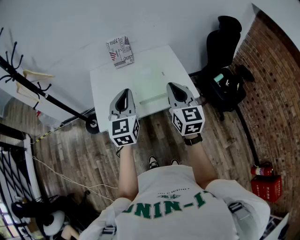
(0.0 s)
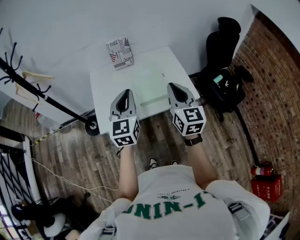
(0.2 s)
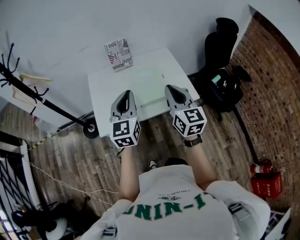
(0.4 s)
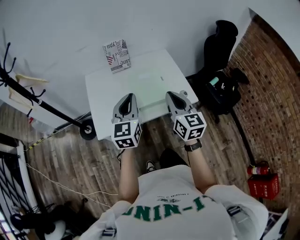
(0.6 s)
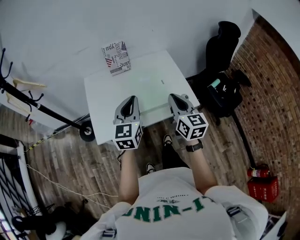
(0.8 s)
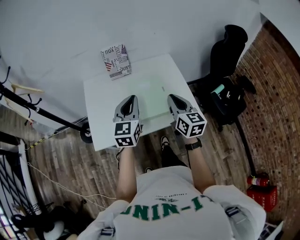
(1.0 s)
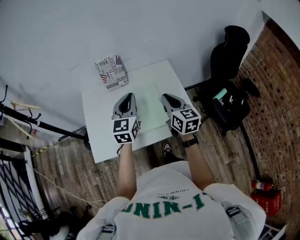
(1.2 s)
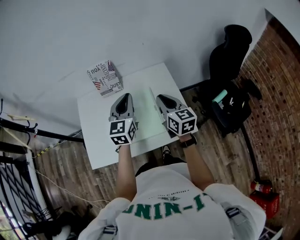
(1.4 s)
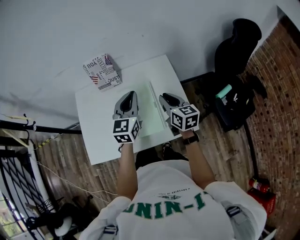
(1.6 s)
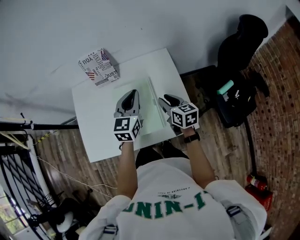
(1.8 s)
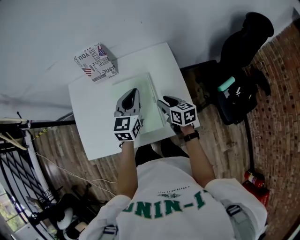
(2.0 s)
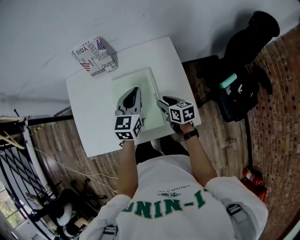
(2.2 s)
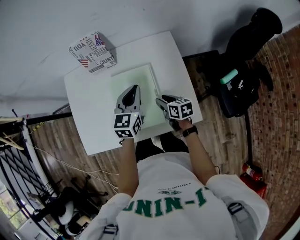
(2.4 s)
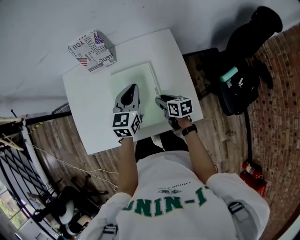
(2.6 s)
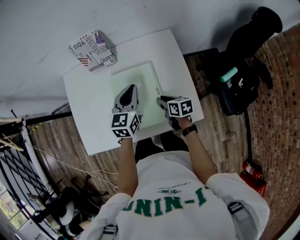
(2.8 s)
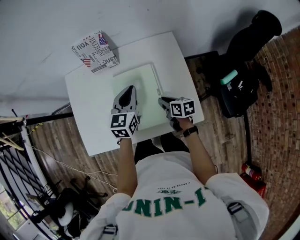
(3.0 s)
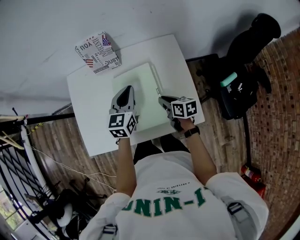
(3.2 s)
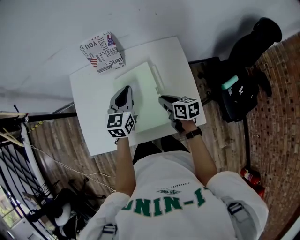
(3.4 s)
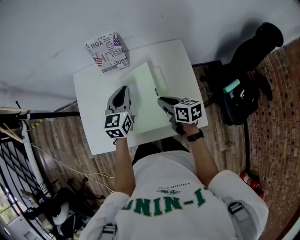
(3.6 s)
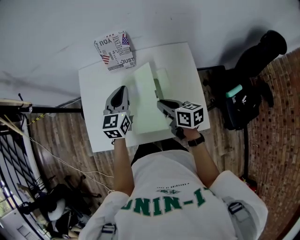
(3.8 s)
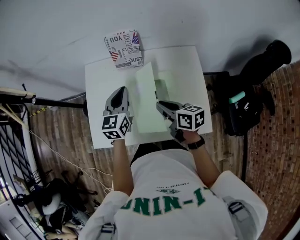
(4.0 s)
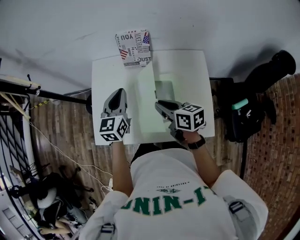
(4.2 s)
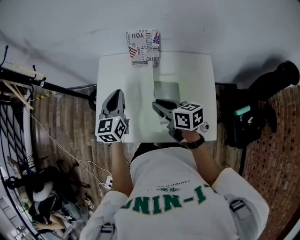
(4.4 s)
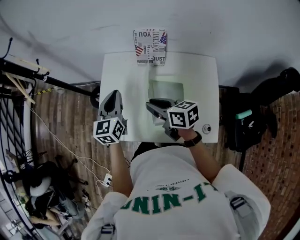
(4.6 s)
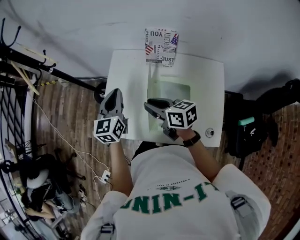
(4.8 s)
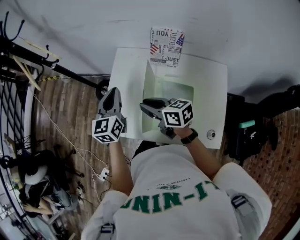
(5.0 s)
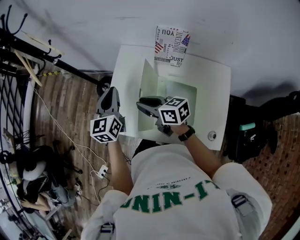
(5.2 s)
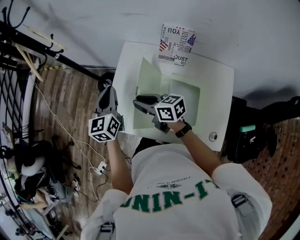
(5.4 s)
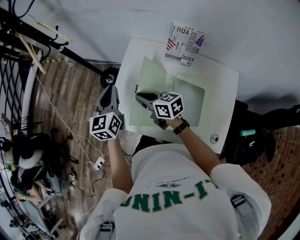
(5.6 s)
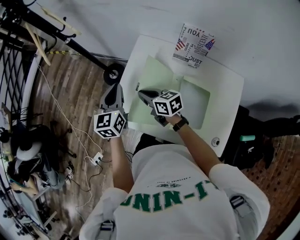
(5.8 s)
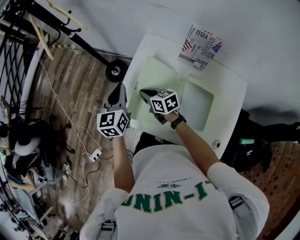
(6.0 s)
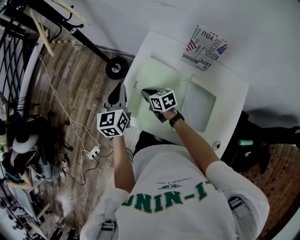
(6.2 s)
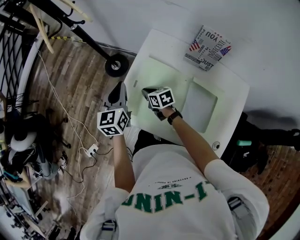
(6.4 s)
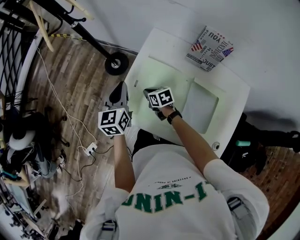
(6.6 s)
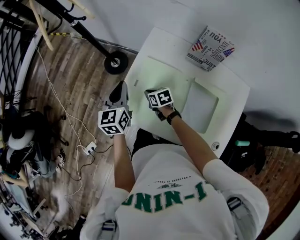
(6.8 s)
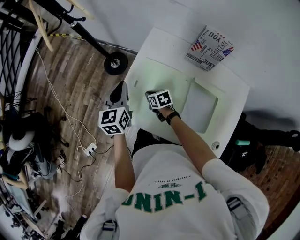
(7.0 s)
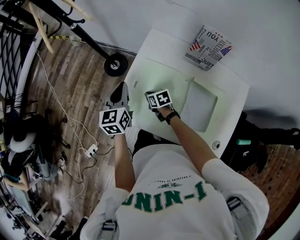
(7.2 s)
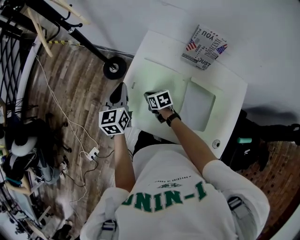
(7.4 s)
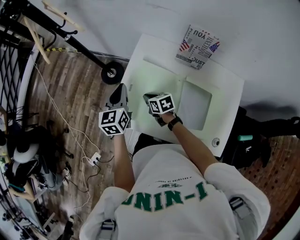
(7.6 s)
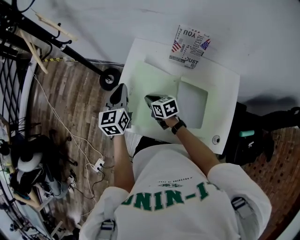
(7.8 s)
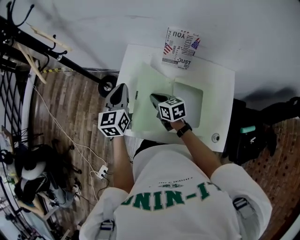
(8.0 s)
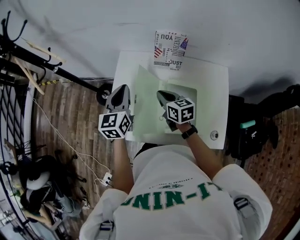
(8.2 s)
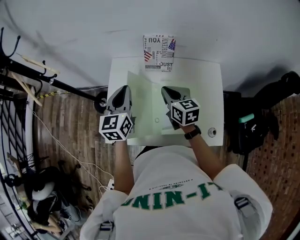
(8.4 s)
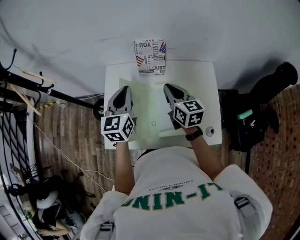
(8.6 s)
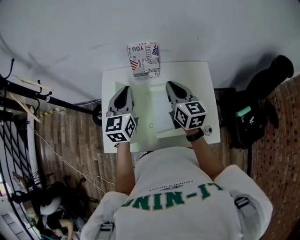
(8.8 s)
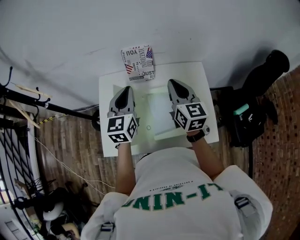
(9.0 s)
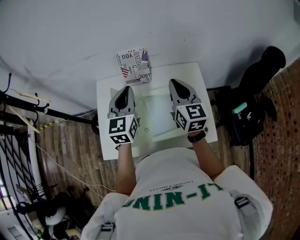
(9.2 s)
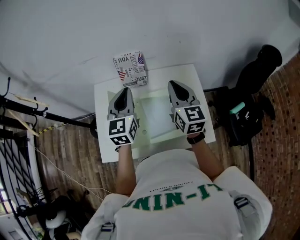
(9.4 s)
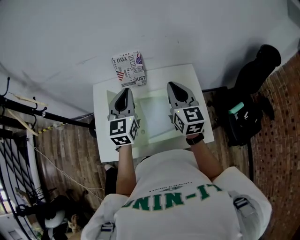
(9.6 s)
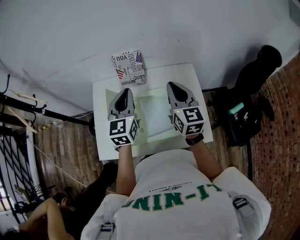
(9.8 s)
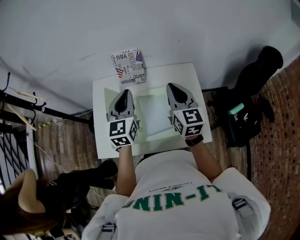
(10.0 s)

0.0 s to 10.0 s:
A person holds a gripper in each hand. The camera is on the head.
0.0 to 1.4 s: The left gripper heads forward and to the right, covering approximately 30 cm, while the right gripper shifts some 30 cm forward, and changes its angle by about 20 degrees.
1.4 to 2.8 s: The right gripper moves downward, some 30 cm, and turns by roughly 40 degrees, while the left gripper travels downward and forward by some 15 cm.
2.8 to 4.2 s: The left gripper goes approximately 20 cm to the left, while the right gripper moves upward and to the left, roughly 25 cm, and rotates approximately 20 degrees.
4.2 to 5.8 s: The right gripper changes place by roughly 30 cm, and swivels about 30 degrees. The left gripper shifts by some 25 cm, and changes its angle by some 30 degrees.
5.8 to 7.2 s: The right gripper shifts roughly 20 cm downward, and changes its angle by approximately 30 degrees, while the left gripper is displaced downward by about 5 cm.
7.2 to 8.6 s: The right gripper is displaced upward by roughly 30 cm, and points its fingers roughly 30 degrees further upward. Meanwhile the left gripper shifts by about 25 cm, and swivels approximately 30 degrees.
8.6 to 10.0 s: The right gripper moves to the right and upward, roughly 15 cm, and rotates about 20 degrees. The left gripper heads to the right, covering about 10 cm.

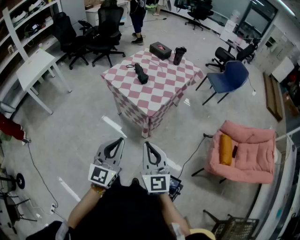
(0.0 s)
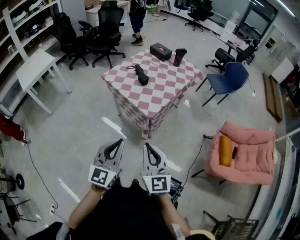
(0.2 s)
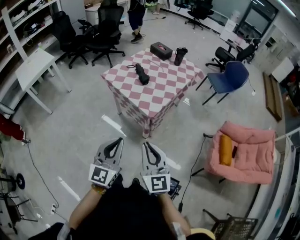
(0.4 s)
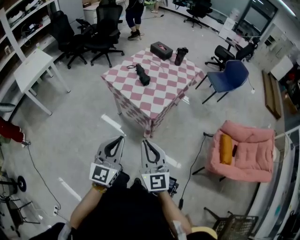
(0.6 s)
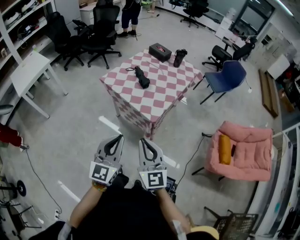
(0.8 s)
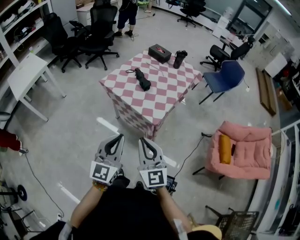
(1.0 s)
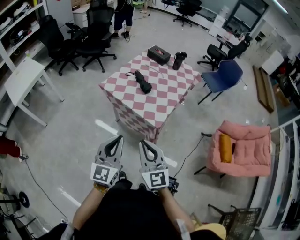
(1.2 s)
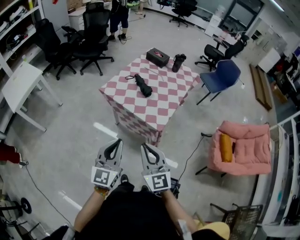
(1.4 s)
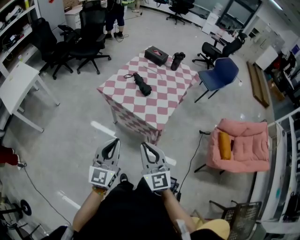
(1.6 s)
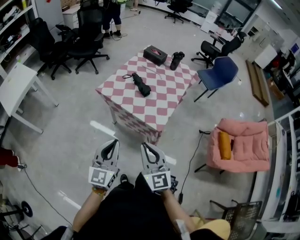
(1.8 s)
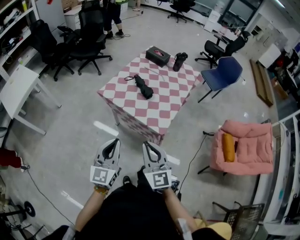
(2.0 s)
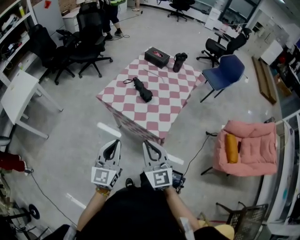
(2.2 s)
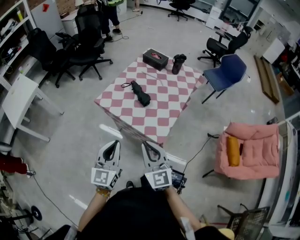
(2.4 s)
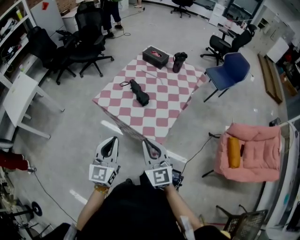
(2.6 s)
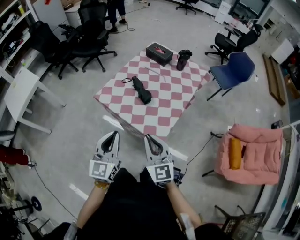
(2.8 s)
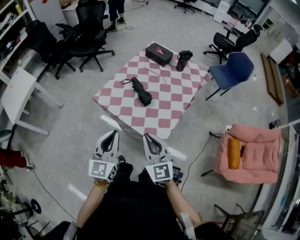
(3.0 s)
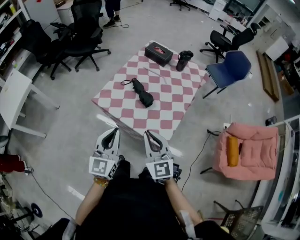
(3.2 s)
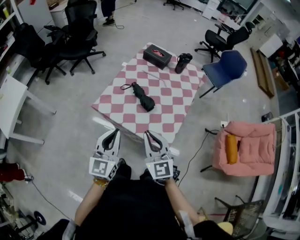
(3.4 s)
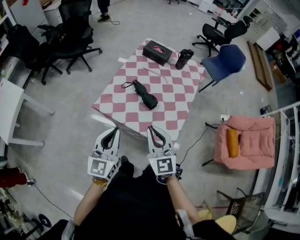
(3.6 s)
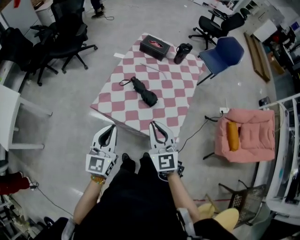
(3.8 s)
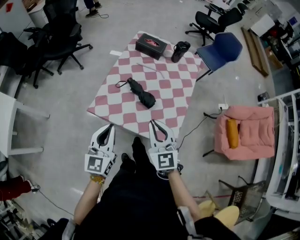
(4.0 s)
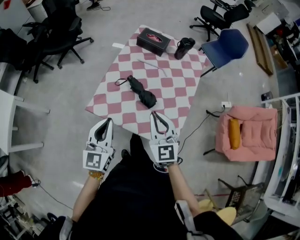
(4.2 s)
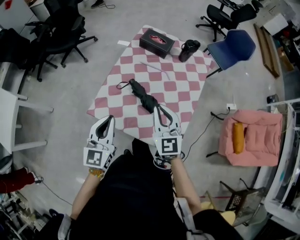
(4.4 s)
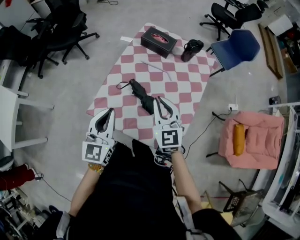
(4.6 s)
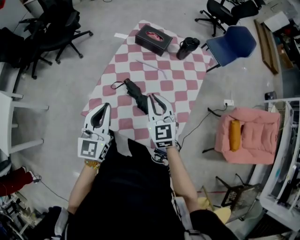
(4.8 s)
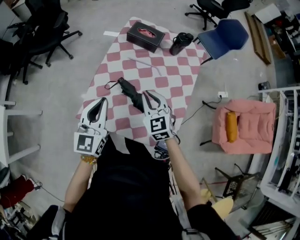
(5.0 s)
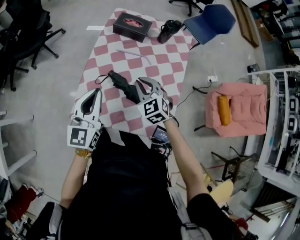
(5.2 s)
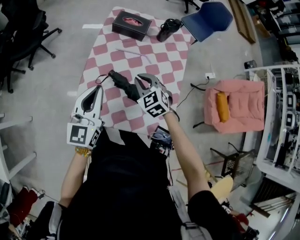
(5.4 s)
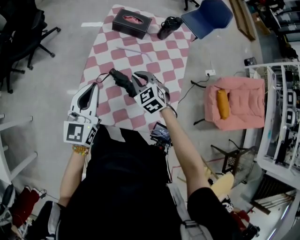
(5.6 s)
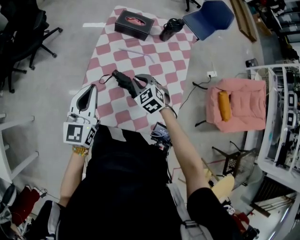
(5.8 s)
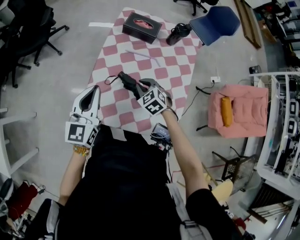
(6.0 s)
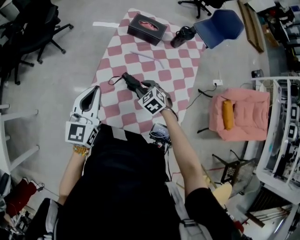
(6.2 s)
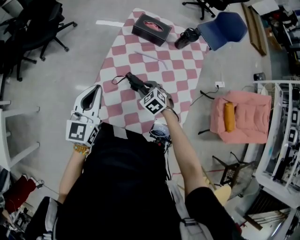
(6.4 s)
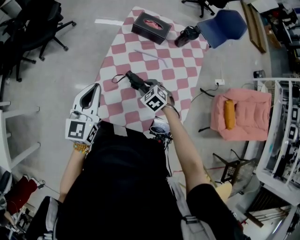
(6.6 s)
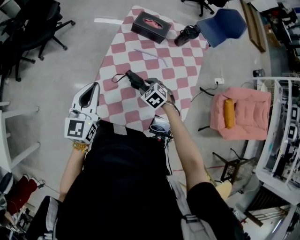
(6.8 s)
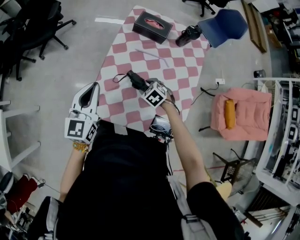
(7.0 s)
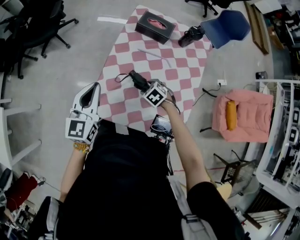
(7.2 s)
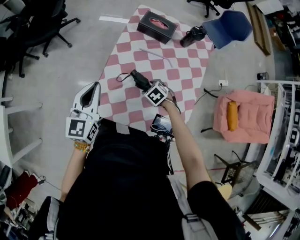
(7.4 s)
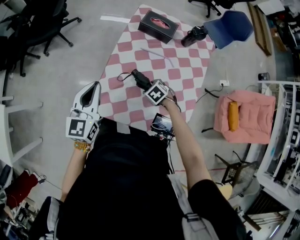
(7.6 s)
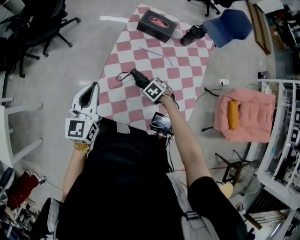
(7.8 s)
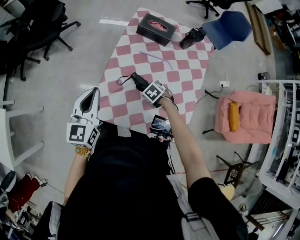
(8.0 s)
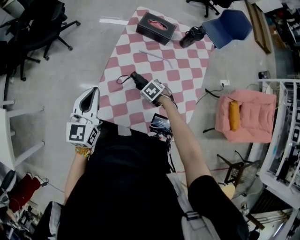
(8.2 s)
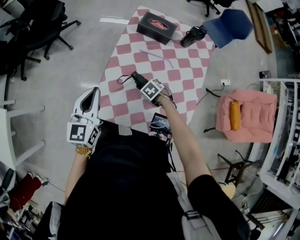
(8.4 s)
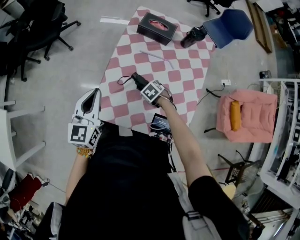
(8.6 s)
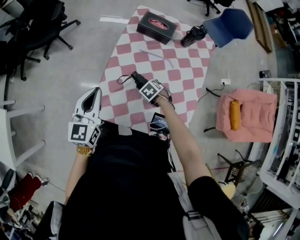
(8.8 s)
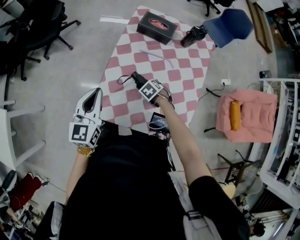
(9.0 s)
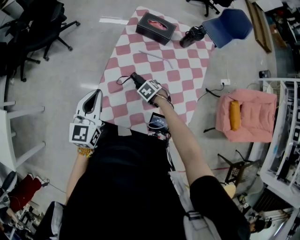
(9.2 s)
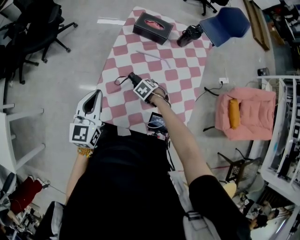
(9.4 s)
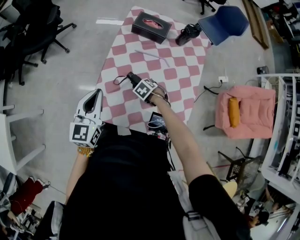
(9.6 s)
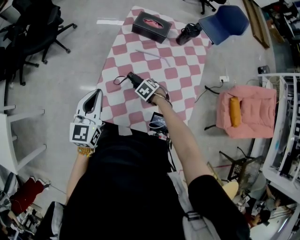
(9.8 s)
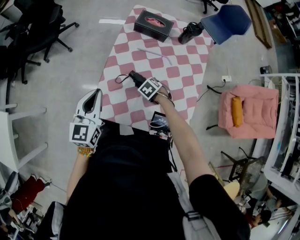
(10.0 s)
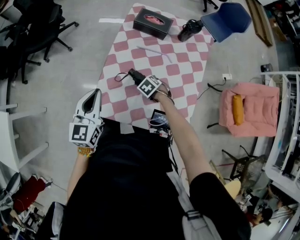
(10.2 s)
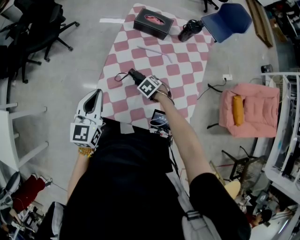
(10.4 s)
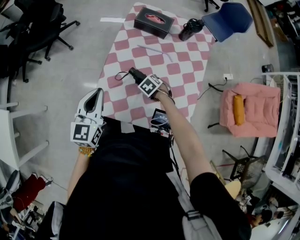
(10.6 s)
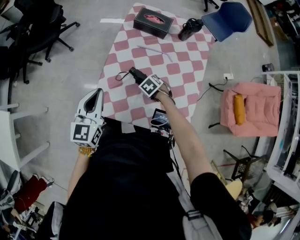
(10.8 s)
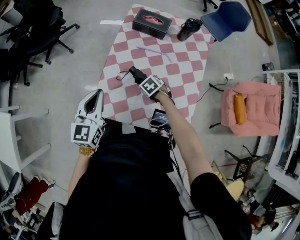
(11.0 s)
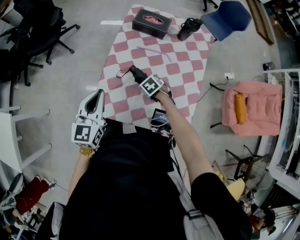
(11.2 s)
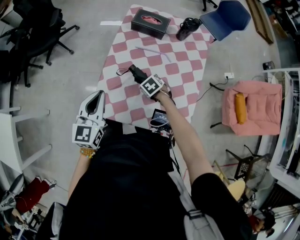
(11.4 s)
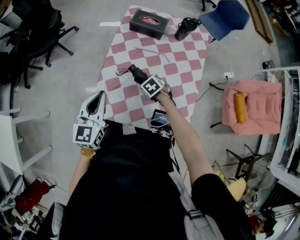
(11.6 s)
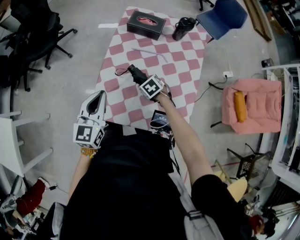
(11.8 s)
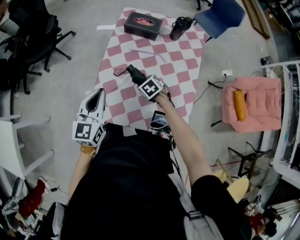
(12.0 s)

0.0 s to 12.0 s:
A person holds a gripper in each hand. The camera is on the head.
0.0 to 1.6 s: The grippers both shift to the left and forward by about 25 cm.
1.6 to 3.0 s: The two grippers go roughly 20 cm forward.
3.0 to 4.4 s: Both grippers travel together forward, about 25 cm.
4.4 to 6.0 s: The right gripper heads downward and forward, covering approximately 20 cm, and tilts its fingers approximately 40 degrees downward. The left gripper goes some 15 cm forward and to the left.
6.0 to 7.6 s: The right gripper shifts about 10 cm downward, rotates about 30 degrees, and opens its fingers, while the left gripper moves roughly 5 cm.
7.6 to 10.4 s: The grippers make only small movements.
10.4 to 12.0 s: The right gripper ends up roughly 5 cm from where it was.

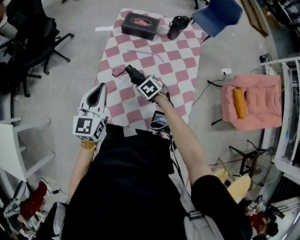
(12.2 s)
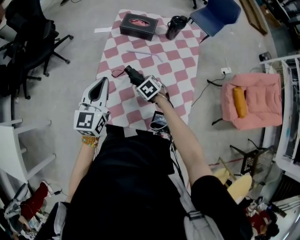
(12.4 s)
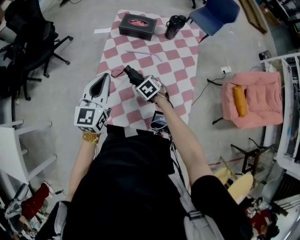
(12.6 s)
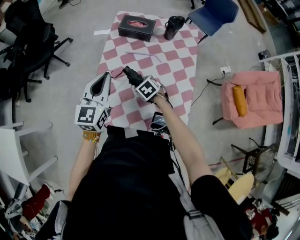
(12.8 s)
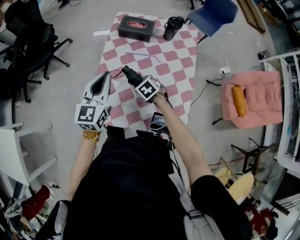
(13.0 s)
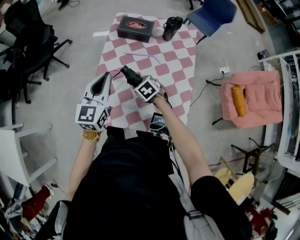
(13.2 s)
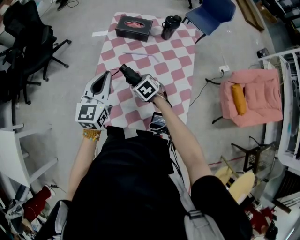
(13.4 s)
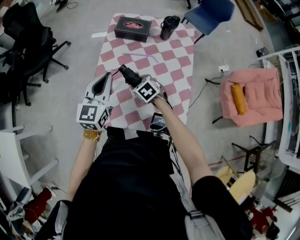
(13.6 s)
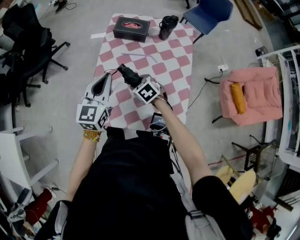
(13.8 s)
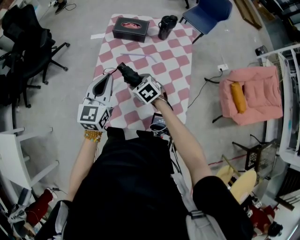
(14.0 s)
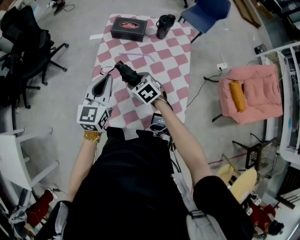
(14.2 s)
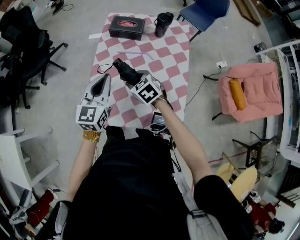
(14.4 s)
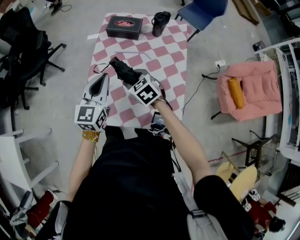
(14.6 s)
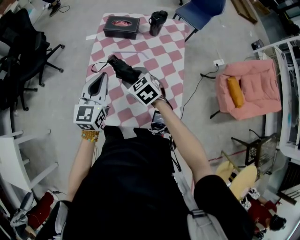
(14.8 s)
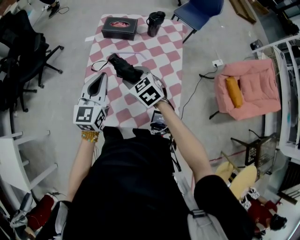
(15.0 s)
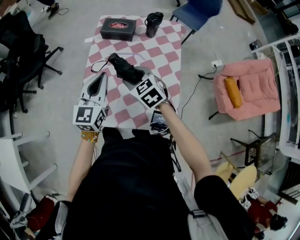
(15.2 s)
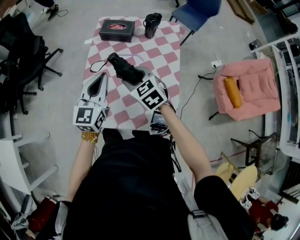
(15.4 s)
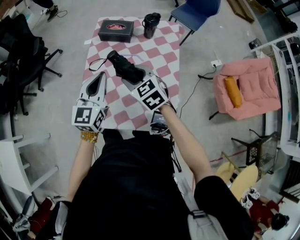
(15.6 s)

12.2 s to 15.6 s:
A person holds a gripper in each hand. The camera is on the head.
12.2 to 13.8 s: The left gripper goes roughly 5 cm to the right. Meanwhile the right gripper is displaced upward by approximately 5 cm.
13.8 to 15.6 s: The right gripper moves upward, roughly 15 cm, and swivels approximately 20 degrees. The left gripper is displaced to the right by approximately 5 cm.
